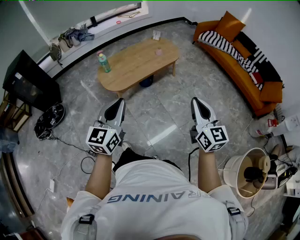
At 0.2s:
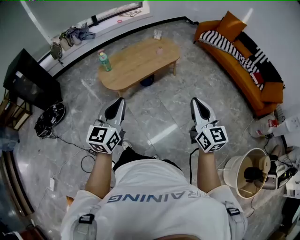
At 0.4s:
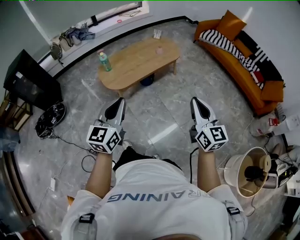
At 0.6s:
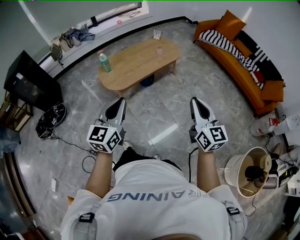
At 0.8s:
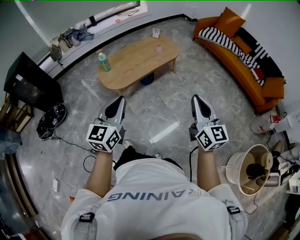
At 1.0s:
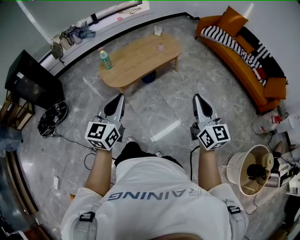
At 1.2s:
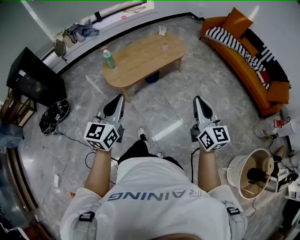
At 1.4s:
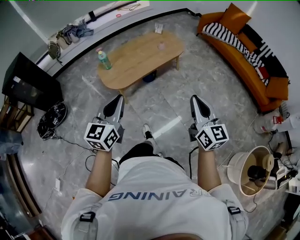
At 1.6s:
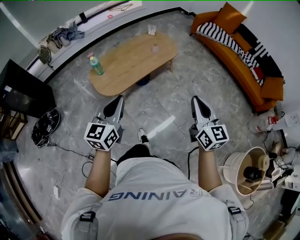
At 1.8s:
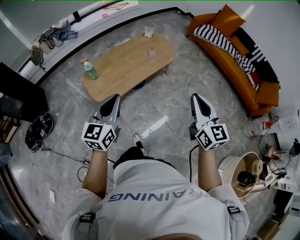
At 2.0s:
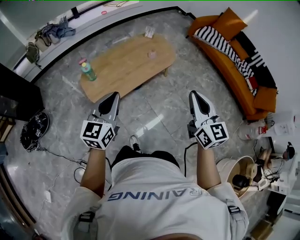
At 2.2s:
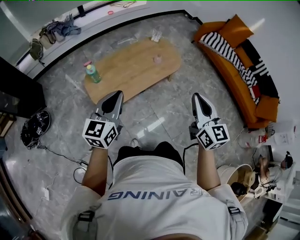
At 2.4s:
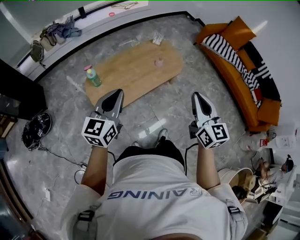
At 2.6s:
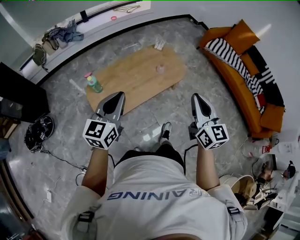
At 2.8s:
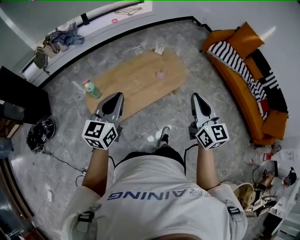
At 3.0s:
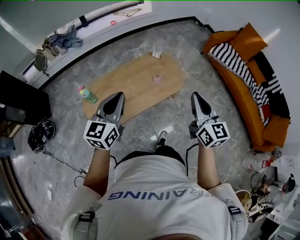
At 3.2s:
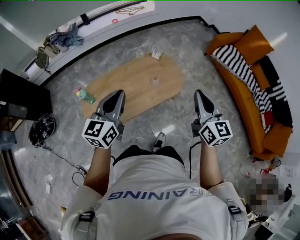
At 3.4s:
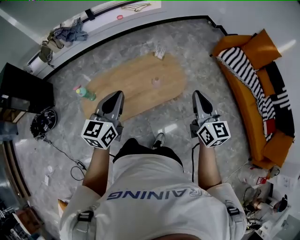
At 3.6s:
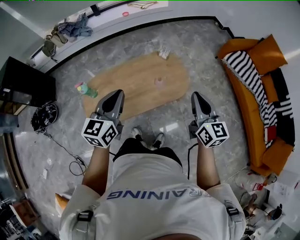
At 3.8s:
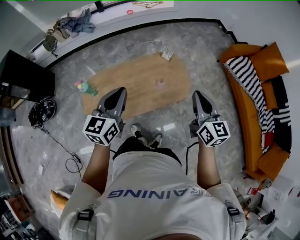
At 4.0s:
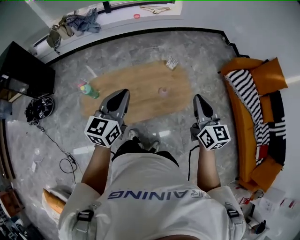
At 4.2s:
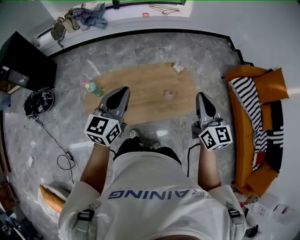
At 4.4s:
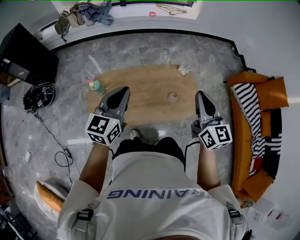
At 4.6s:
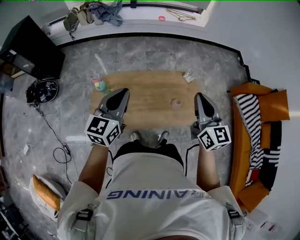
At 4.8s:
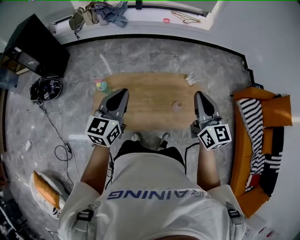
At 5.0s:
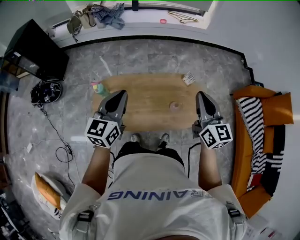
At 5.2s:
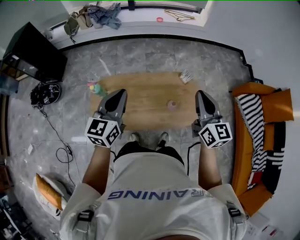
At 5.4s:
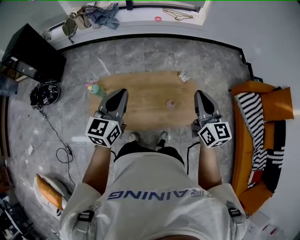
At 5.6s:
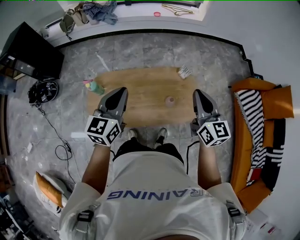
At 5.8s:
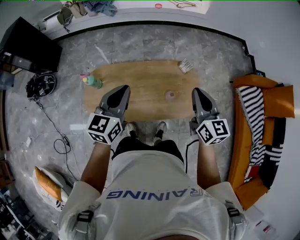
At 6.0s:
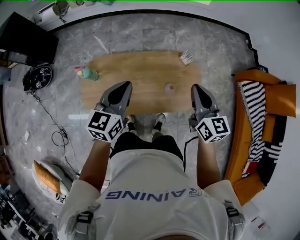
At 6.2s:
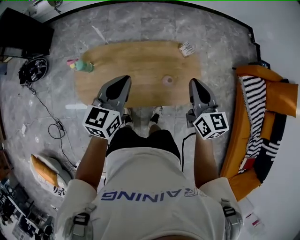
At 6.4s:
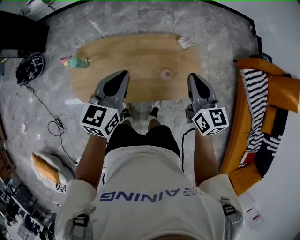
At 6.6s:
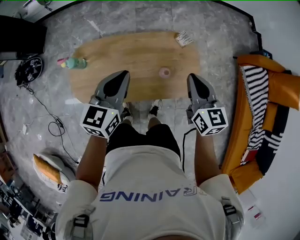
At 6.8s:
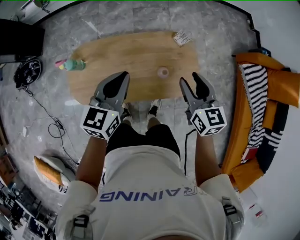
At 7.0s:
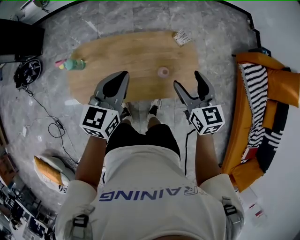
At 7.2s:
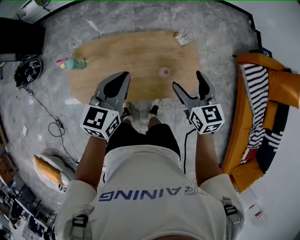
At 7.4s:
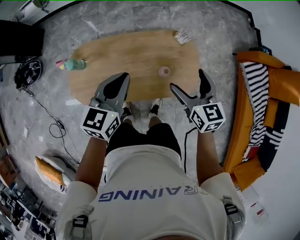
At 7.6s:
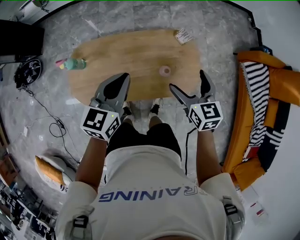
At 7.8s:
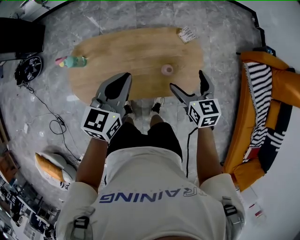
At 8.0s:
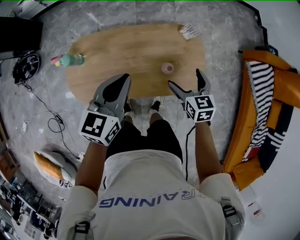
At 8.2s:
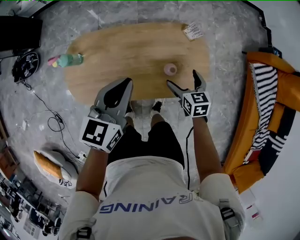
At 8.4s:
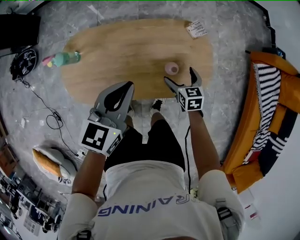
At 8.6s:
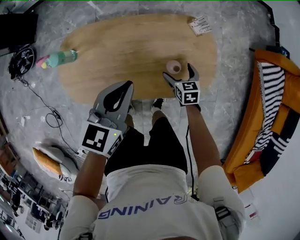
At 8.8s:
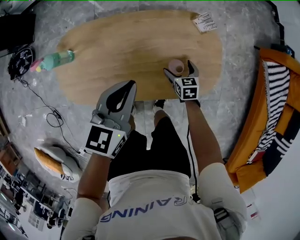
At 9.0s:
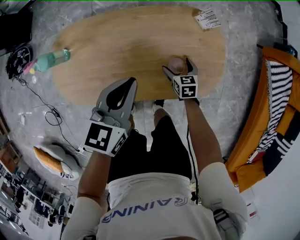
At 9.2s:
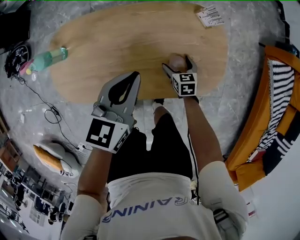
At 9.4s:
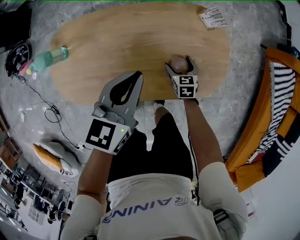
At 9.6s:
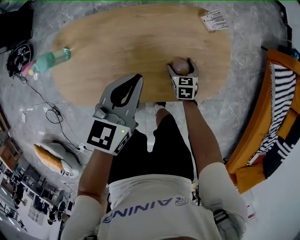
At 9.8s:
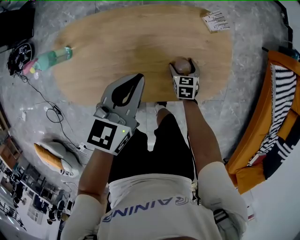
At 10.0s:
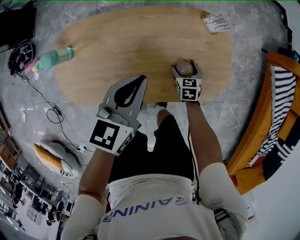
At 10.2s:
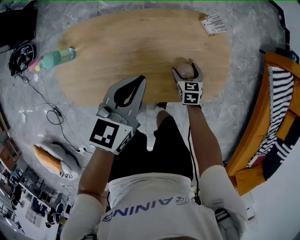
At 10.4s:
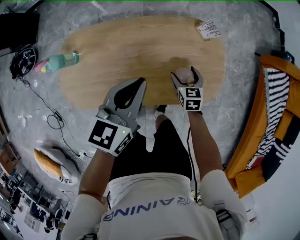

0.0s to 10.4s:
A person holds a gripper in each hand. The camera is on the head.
0.0s to 1.4s: Both grippers travel together forward, about 5 cm.
1.4s to 3.0s: The pair of grippers is taken forward, roughly 50 cm.
3.0s to 4.4s: The right gripper moves forward, roughly 25 cm, and rotates about 20 degrees; the left gripper is displaced forward and to the left by about 15 cm.
4.4s to 6.0s: The left gripper goes roughly 10 cm to the right and downward, while the right gripper is displaced downward, forward and to the right by about 15 cm.
6.0s to 7.4s: The right gripper moves downward, approximately 10 cm, and opens. The left gripper moves downward, roughly 5 cm.
7.4s to 9.0s: The left gripper goes some 20 cm downward, while the right gripper moves downward, some 40 cm, and turns by roughly 30 degrees.
9.0s to 10.4s: The right gripper shifts about 10 cm upward.

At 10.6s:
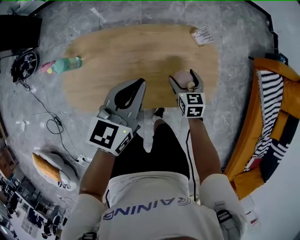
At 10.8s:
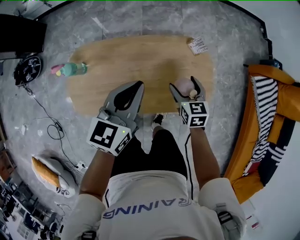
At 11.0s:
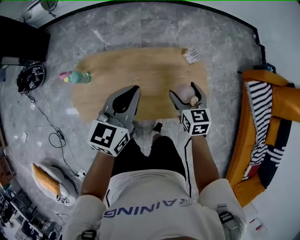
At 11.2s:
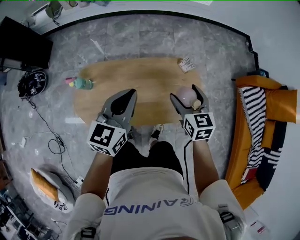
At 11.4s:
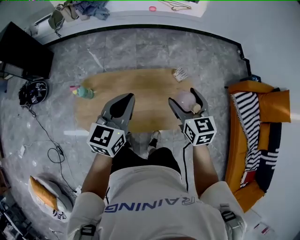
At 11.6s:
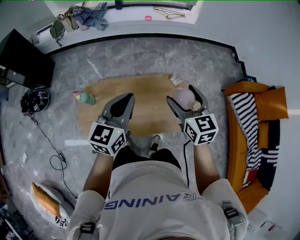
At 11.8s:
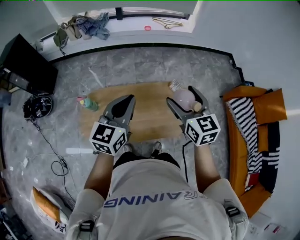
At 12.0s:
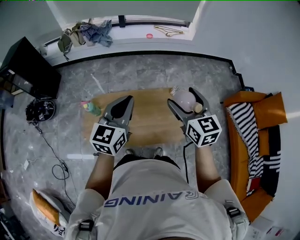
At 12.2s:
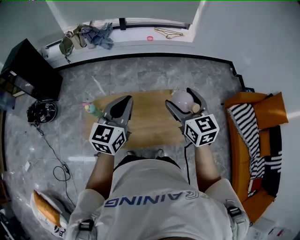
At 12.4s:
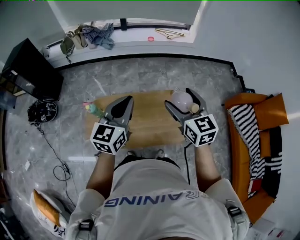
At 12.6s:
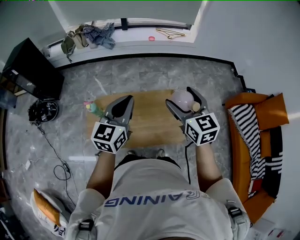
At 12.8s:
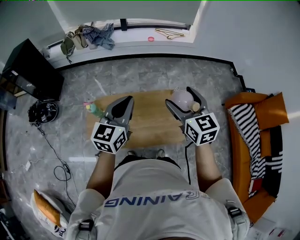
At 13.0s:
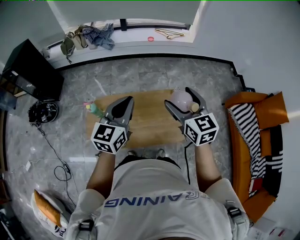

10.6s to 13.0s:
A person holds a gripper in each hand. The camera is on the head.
10.6s to 11.8s: The left gripper goes about 25 cm upward, while the right gripper shifts some 50 cm upward, and swivels roughly 30 degrees.
11.8s to 13.0s: The grippers make only small movements.

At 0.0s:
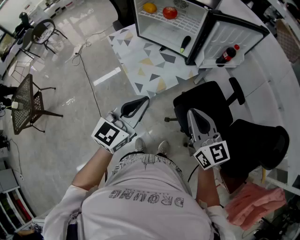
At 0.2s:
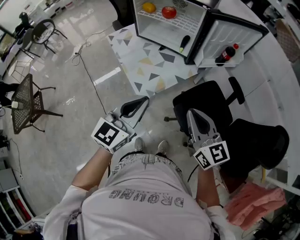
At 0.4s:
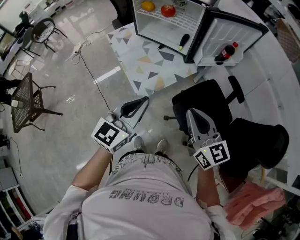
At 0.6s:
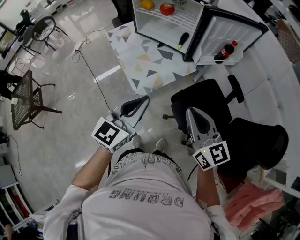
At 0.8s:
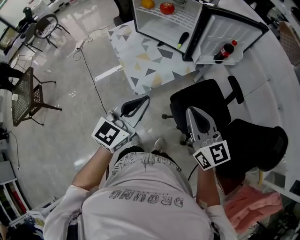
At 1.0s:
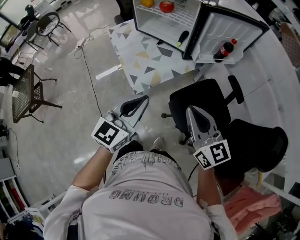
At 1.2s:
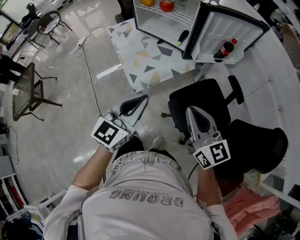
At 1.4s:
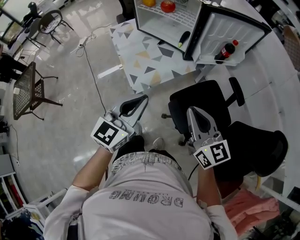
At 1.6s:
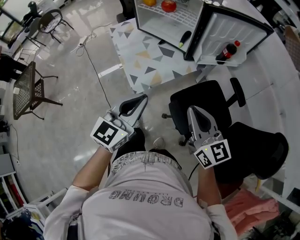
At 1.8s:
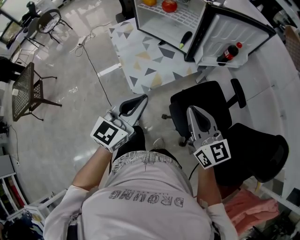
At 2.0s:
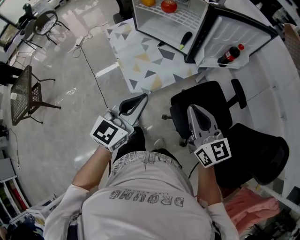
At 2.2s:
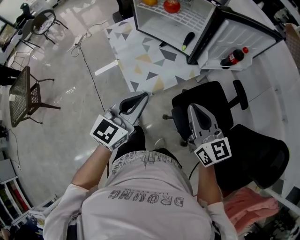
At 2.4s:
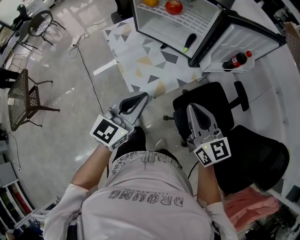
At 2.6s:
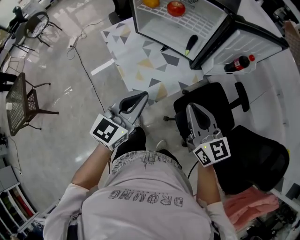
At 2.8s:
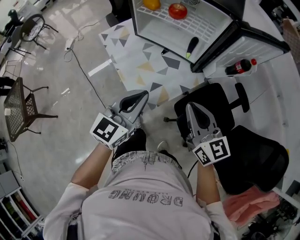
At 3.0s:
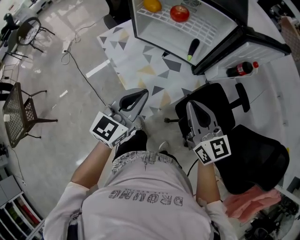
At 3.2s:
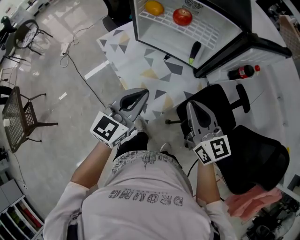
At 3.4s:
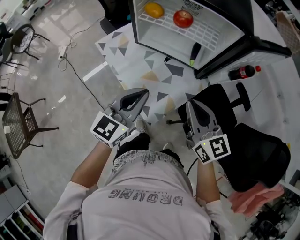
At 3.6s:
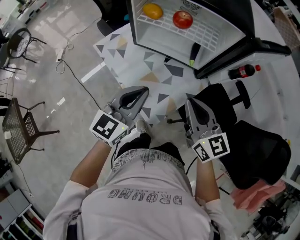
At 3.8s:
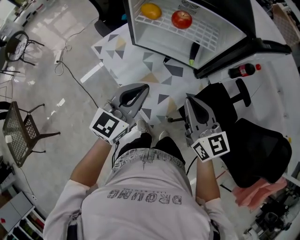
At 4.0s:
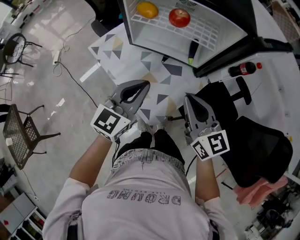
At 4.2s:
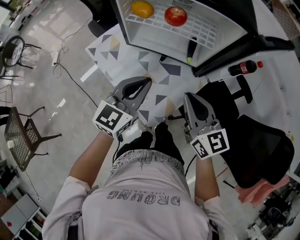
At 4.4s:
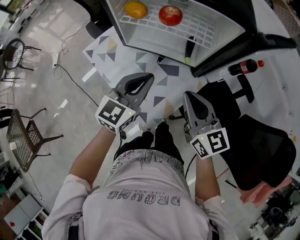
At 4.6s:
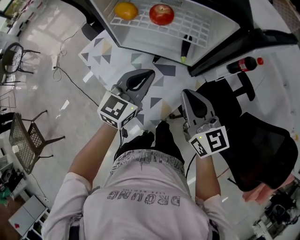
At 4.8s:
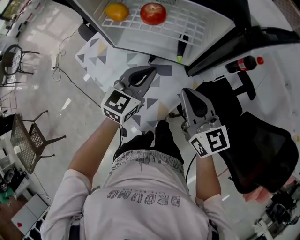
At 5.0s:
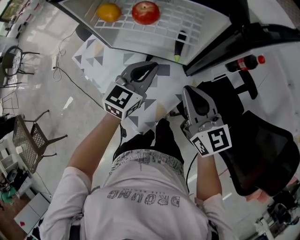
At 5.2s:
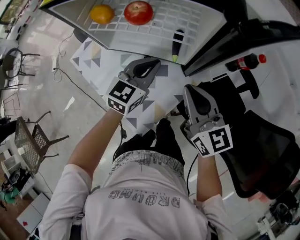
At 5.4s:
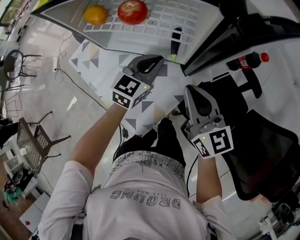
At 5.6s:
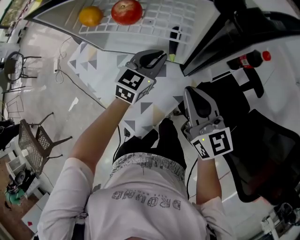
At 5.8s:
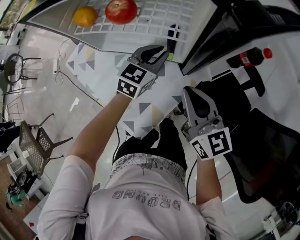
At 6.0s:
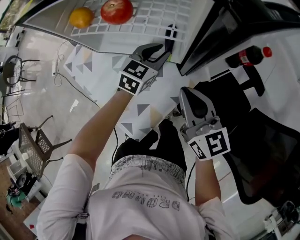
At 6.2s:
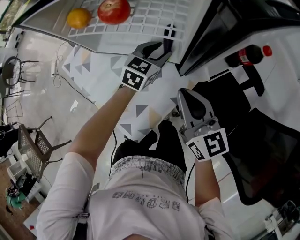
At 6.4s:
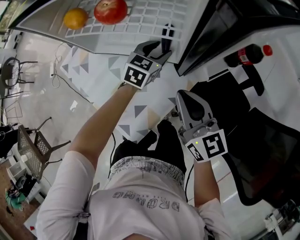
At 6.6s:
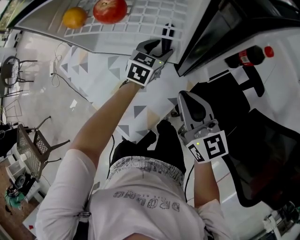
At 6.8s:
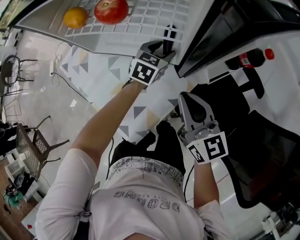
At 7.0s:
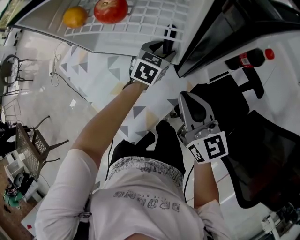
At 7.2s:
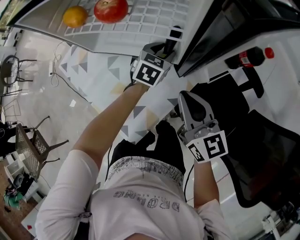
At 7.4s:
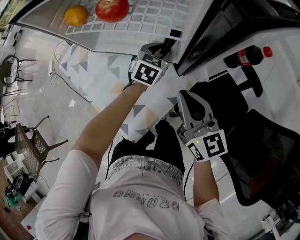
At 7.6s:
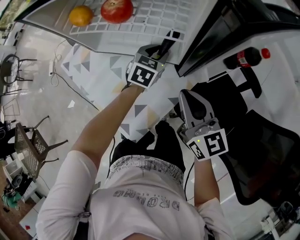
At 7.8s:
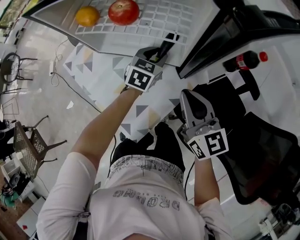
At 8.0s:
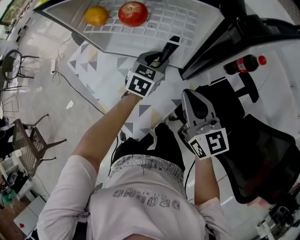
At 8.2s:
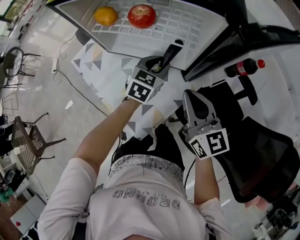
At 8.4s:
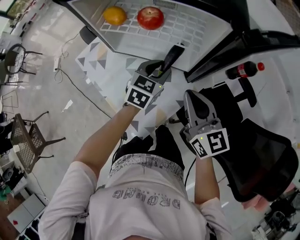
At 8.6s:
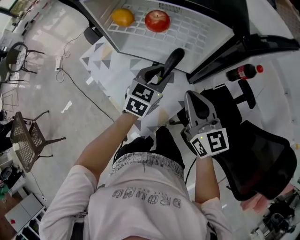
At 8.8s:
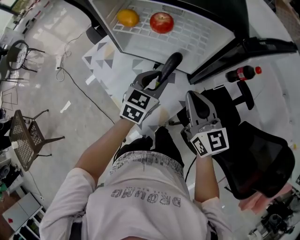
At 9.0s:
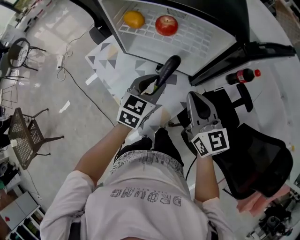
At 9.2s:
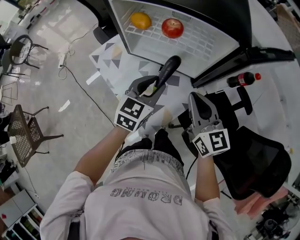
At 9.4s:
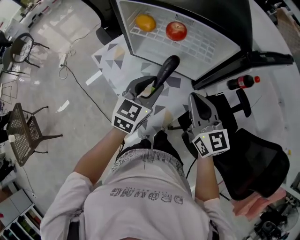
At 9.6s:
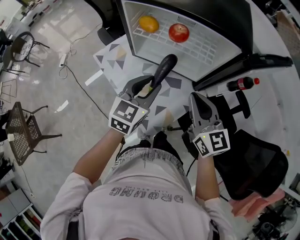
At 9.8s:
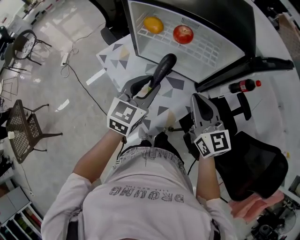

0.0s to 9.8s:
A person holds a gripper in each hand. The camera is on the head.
0.0s to 1.4s: Both grippers move to the right, about 5 cm.
1.4s to 2.8s: The grippers both shift forward and to the left by approximately 20 cm.
2.8s to 4.2s: The right gripper is displaced forward and to the left by about 10 cm, while the left gripper is displaced forward by roughly 15 cm.
4.2s to 5.6s: The left gripper is displaced forward, to the right and downward by about 25 cm. Meanwhile the right gripper goes roughly 15 cm to the right, forward and downward.
5.6s to 7.0s: The left gripper is displaced downward and forward by approximately 10 cm, and opens.
7.0s to 8.4s: The left gripper heads upward, backward and to the left, covering approximately 15 cm, and closes its fingers; the right gripper travels upward by approximately 5 cm.
8.4s to 9.8s: The left gripper shifts about 20 cm upward, to the left and backward. Meanwhile the right gripper heads upward and to the left, covering some 10 cm.

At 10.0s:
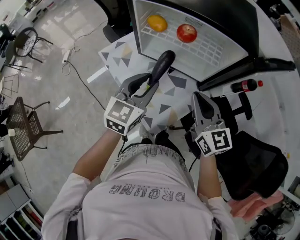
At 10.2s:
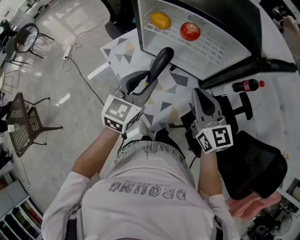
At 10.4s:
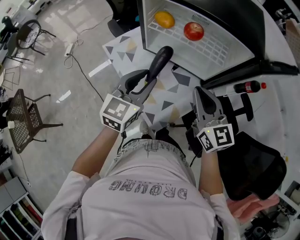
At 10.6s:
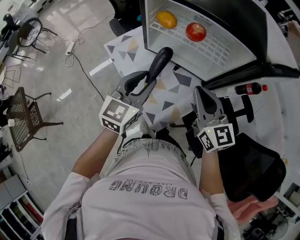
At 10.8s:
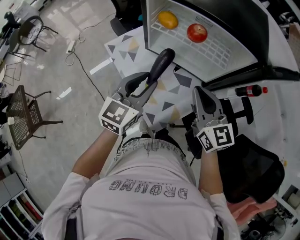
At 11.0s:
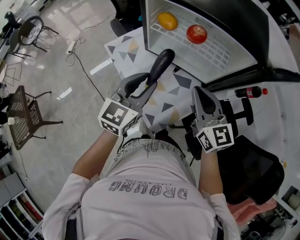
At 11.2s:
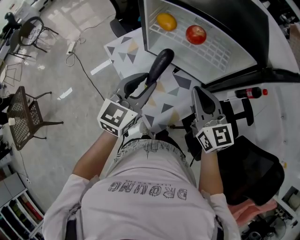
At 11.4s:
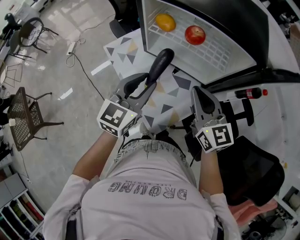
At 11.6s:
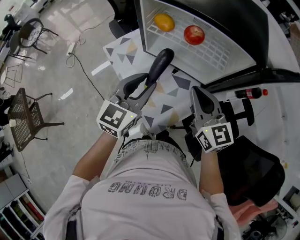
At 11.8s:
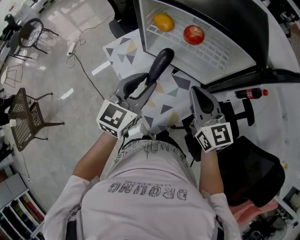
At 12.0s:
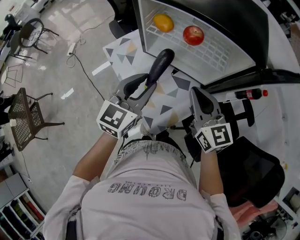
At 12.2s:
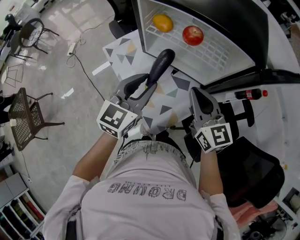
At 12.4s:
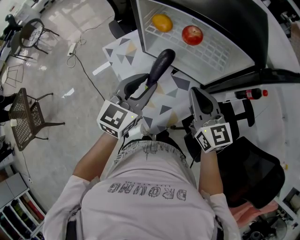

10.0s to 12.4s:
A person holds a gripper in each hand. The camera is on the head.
10.0s to 12.4s: The grippers stay close to where they were, moving slightly.
